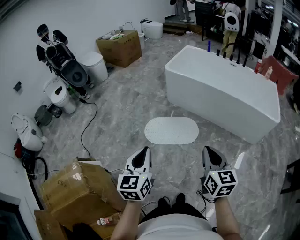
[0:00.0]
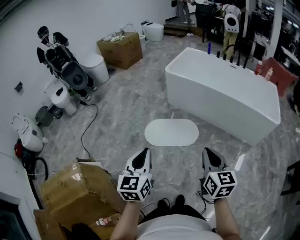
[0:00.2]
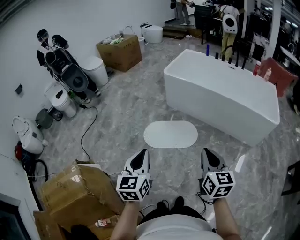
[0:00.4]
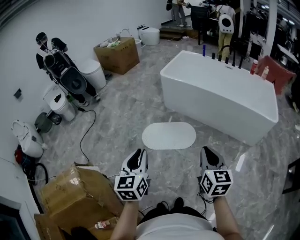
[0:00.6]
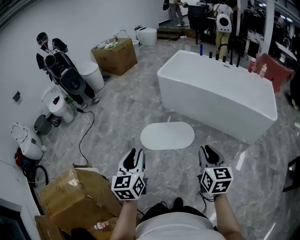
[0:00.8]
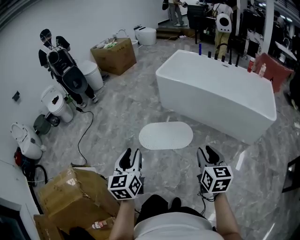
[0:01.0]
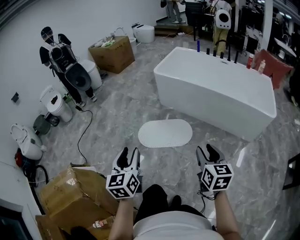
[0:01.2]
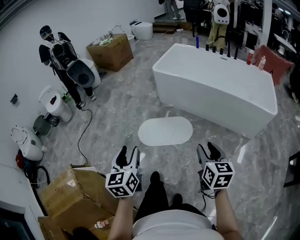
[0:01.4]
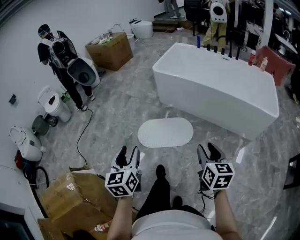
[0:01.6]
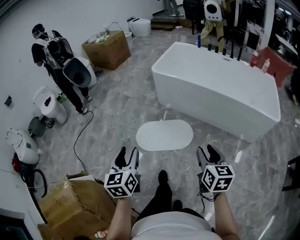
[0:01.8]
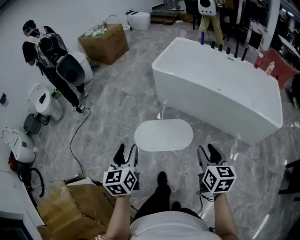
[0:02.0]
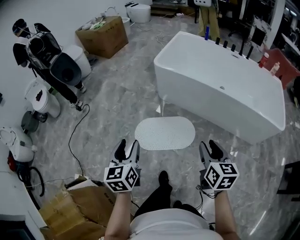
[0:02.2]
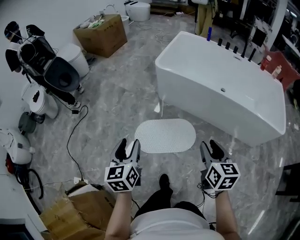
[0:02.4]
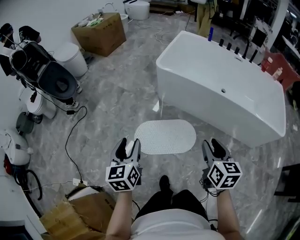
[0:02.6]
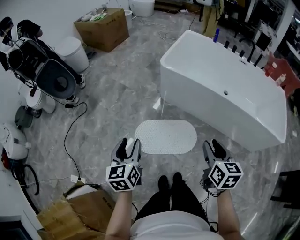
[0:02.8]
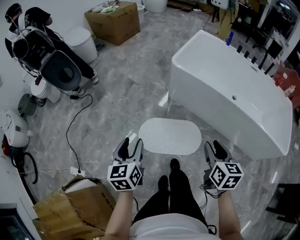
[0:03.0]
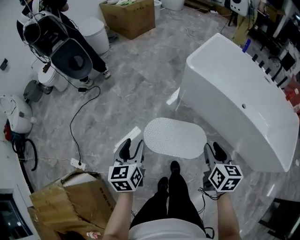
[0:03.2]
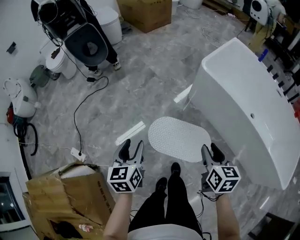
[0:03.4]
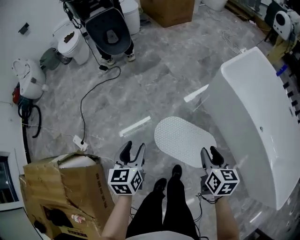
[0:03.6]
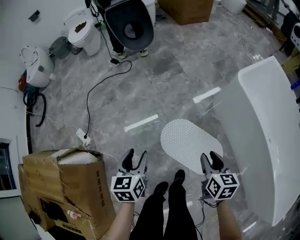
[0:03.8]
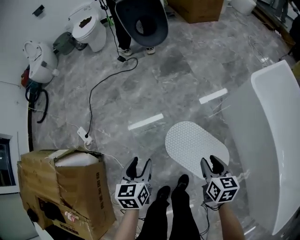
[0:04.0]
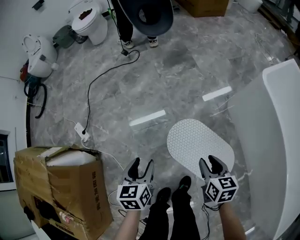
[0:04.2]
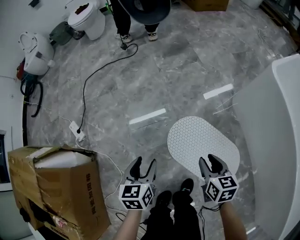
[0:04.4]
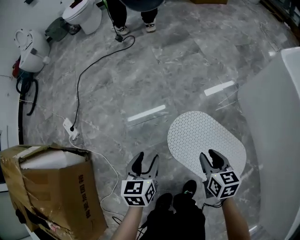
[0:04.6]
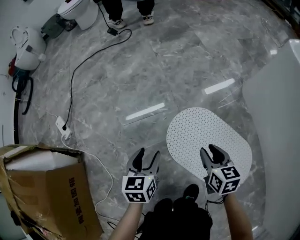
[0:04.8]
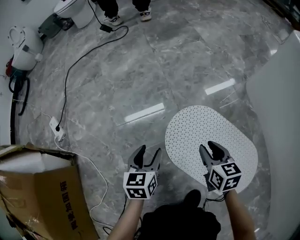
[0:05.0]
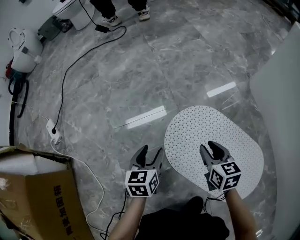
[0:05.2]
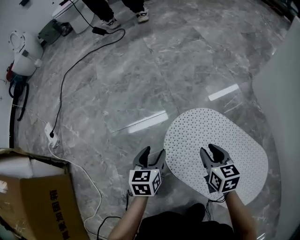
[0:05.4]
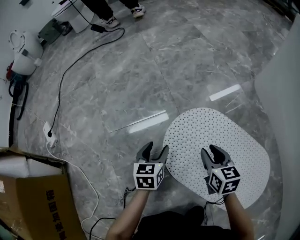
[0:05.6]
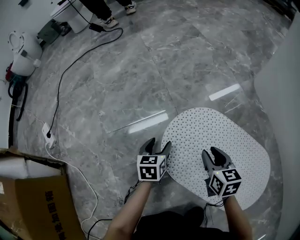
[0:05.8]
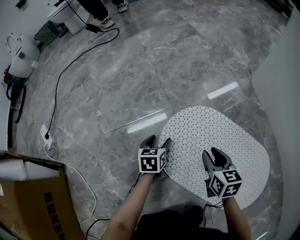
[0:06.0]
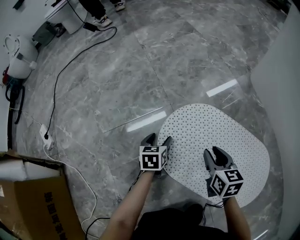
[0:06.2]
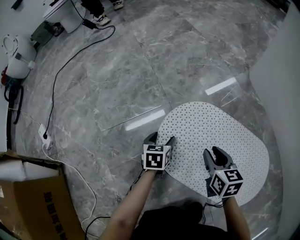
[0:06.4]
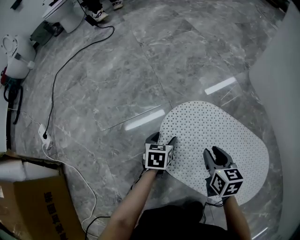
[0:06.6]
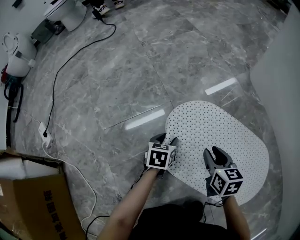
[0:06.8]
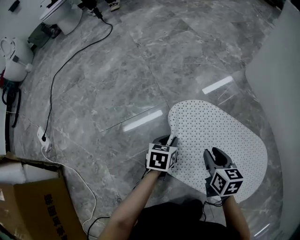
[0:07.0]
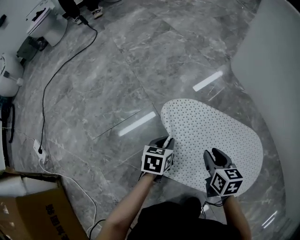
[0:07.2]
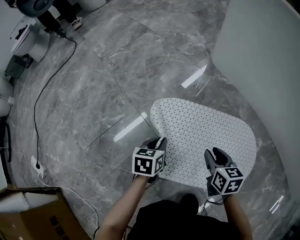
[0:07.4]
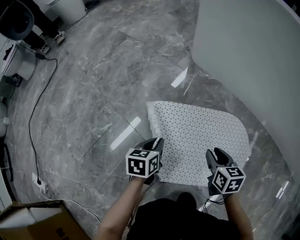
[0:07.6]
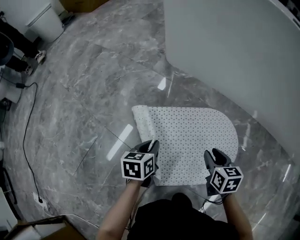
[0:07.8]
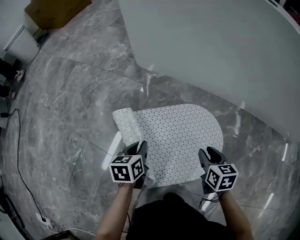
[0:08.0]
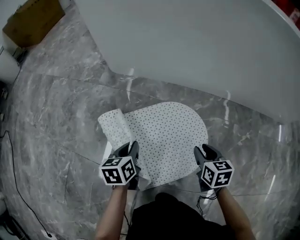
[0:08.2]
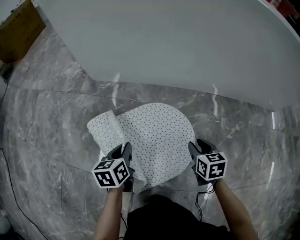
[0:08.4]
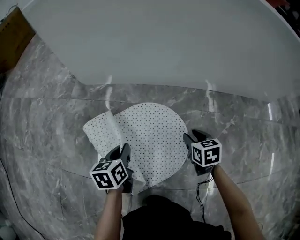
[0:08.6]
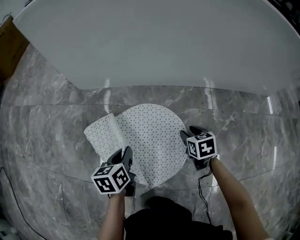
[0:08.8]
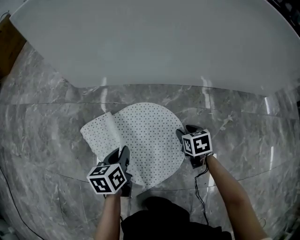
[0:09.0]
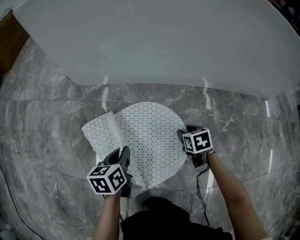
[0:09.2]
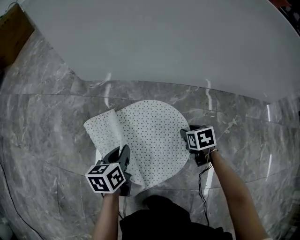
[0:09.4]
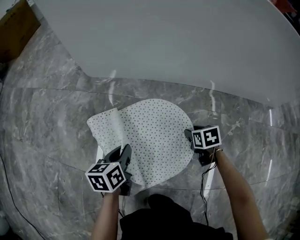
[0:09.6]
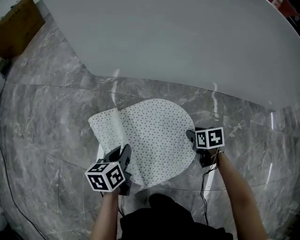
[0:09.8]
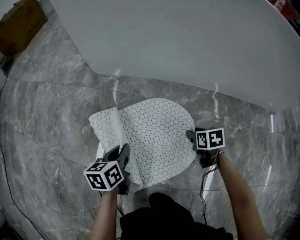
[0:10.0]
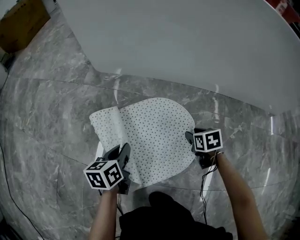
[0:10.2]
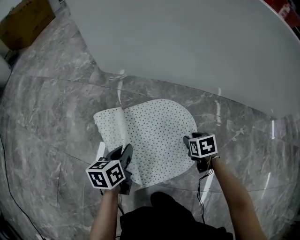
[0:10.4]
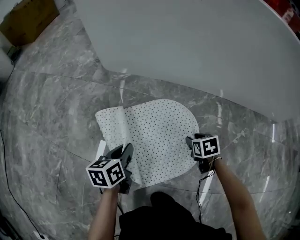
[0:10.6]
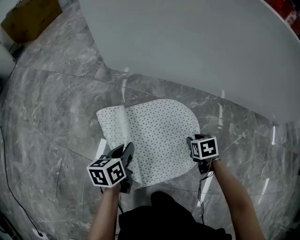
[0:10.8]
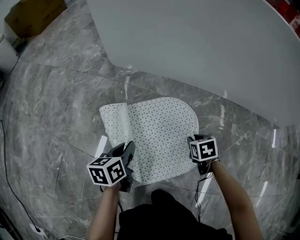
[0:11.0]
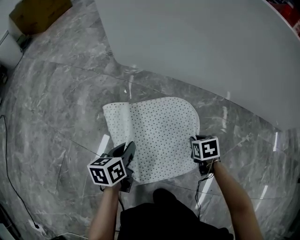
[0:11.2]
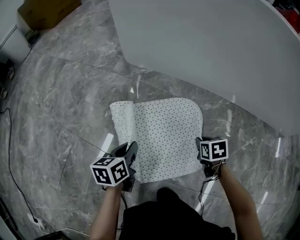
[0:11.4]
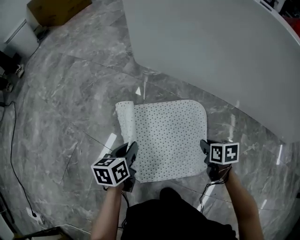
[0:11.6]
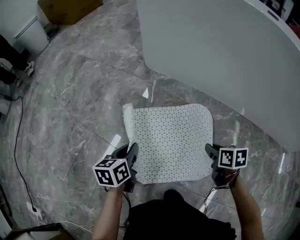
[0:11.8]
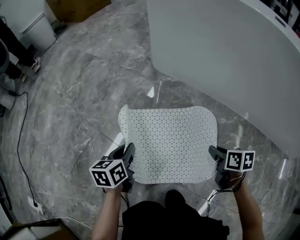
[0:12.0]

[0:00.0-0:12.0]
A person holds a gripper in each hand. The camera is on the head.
0:00.0 to 0:01.6: The right gripper goes roughly 15 cm to the right, forward and downward, and opens its fingers. The left gripper shifts approximately 5 cm forward, and opens.
0:01.6 to 0:03.0: Both grippers move forward, about 35 cm.
0:03.0 to 0:04.4: Both grippers move downward, approximately 40 cm. The left gripper rotates about 30 degrees, while the right gripper changes its angle by approximately 40 degrees.
0:04.4 to 0:06.0: The grippers both shift downward by some 40 cm.
0:06.0 to 0:07.6: The right gripper moves some 20 cm, and changes its angle by some 30 degrees. The left gripper ends up some 20 cm from where it was, rotates some 30 degrees, and closes up.
0:07.6 to 0:09.0: The left gripper shifts by some 25 cm, and swivels some 20 degrees; the right gripper ends up some 25 cm from where it was, and changes its angle by some 30 degrees.
0:09.0 to 0:10.4: The left gripper goes about 5 cm to the left. Meanwhile the right gripper changes place by approximately 5 cm.
0:10.4 to 0:12.0: The right gripper travels upward by some 15 cm, rotates about 20 degrees, and closes its fingers, while the left gripper changes place by about 15 cm.

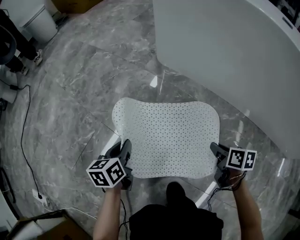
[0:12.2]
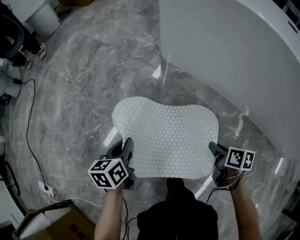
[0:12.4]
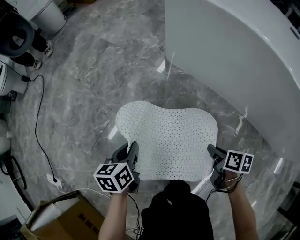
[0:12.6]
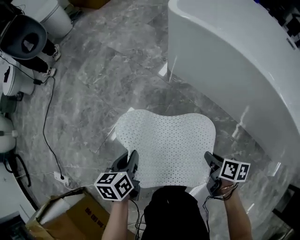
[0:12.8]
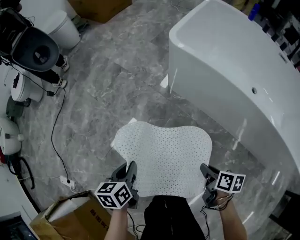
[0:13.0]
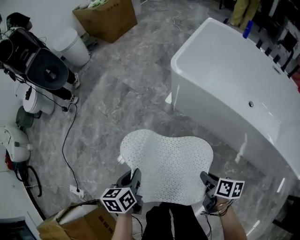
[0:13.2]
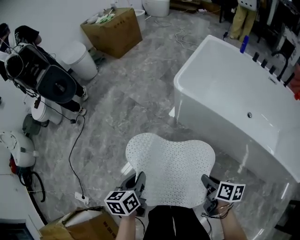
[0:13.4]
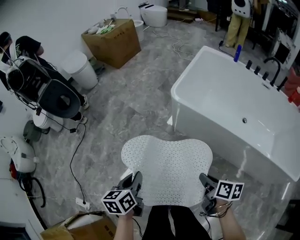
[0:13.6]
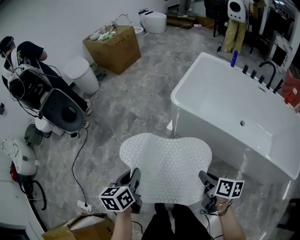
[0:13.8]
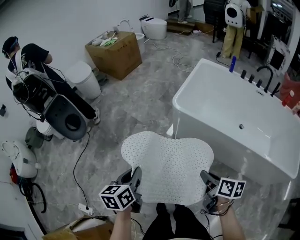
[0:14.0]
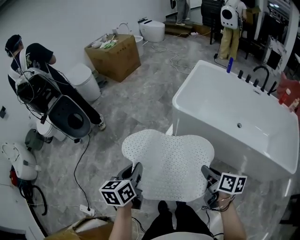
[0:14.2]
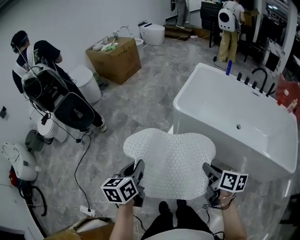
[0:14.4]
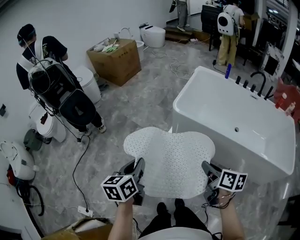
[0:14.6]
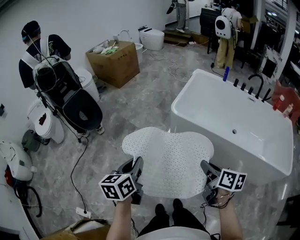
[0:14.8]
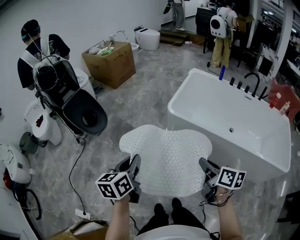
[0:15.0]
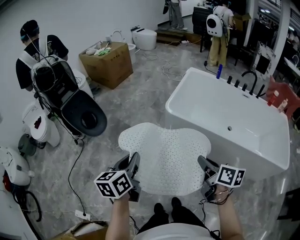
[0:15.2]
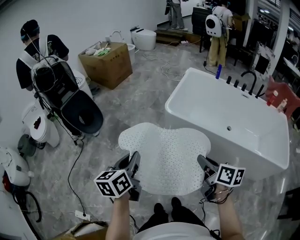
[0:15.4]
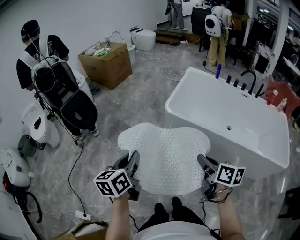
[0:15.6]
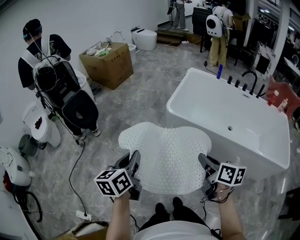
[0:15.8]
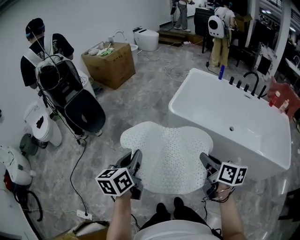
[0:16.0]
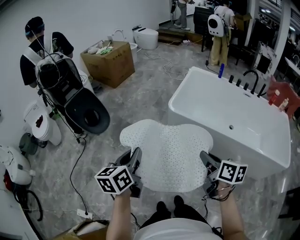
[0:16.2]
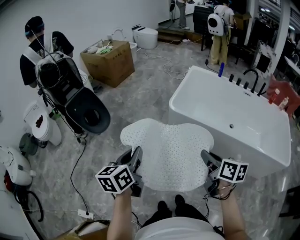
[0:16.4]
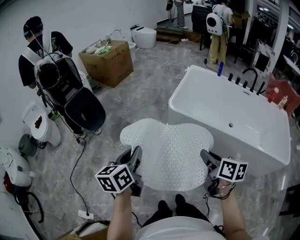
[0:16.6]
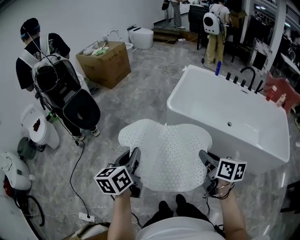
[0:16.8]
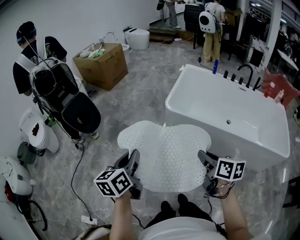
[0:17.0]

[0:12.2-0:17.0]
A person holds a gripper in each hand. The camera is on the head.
0:12.2 to 0:13.8: The two grippers go approximately 60 cm upward.
0:13.8 to 0:15.4: The grippers both shift upward by roughly 15 cm.
0:15.4 to 0:17.0: The grippers make only small movements.

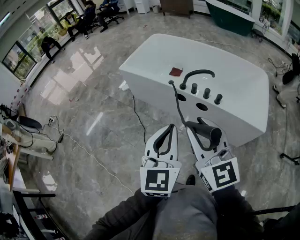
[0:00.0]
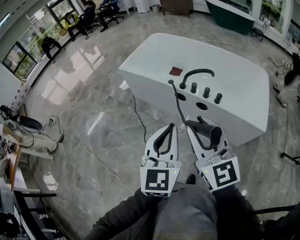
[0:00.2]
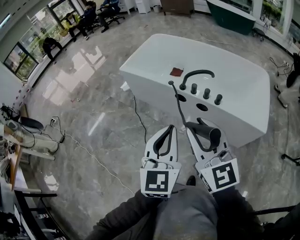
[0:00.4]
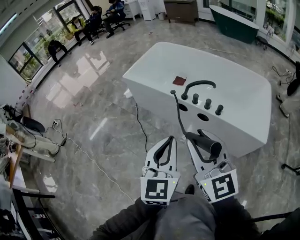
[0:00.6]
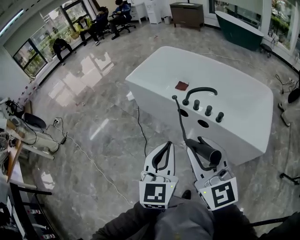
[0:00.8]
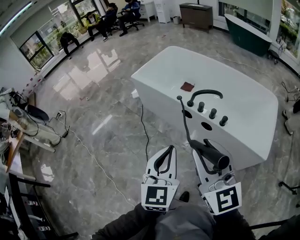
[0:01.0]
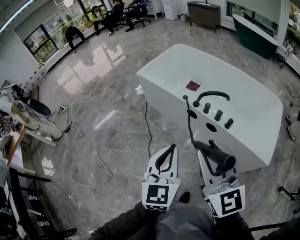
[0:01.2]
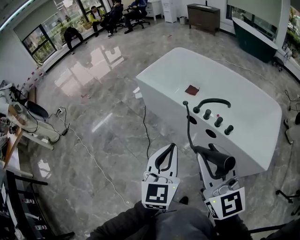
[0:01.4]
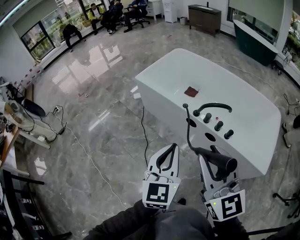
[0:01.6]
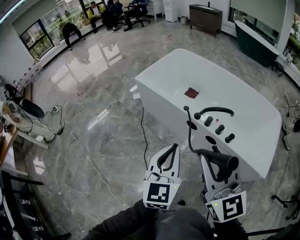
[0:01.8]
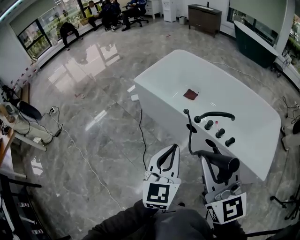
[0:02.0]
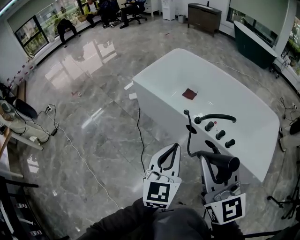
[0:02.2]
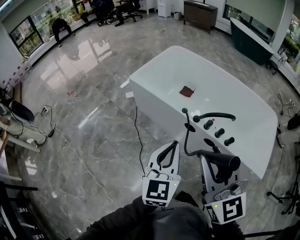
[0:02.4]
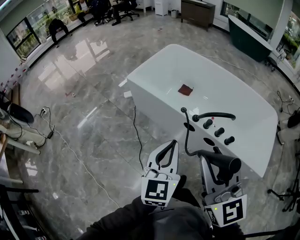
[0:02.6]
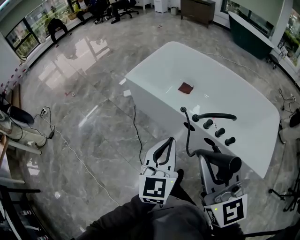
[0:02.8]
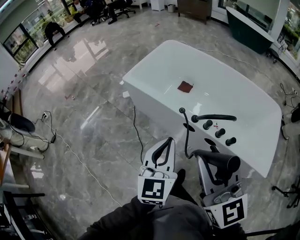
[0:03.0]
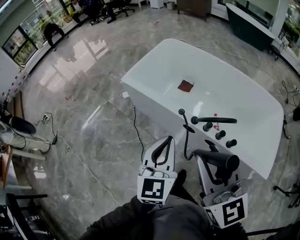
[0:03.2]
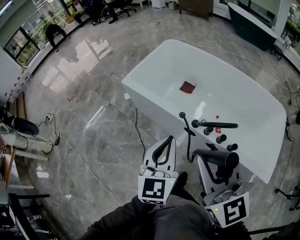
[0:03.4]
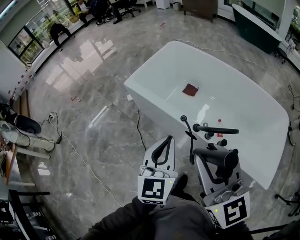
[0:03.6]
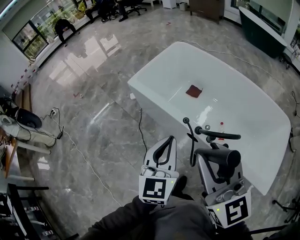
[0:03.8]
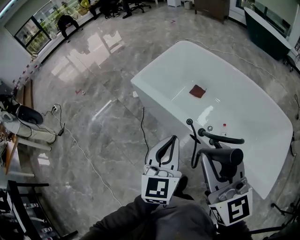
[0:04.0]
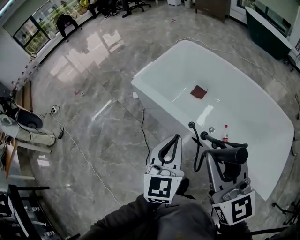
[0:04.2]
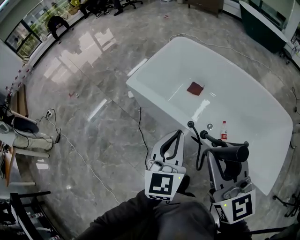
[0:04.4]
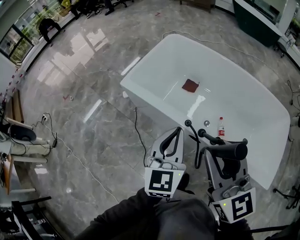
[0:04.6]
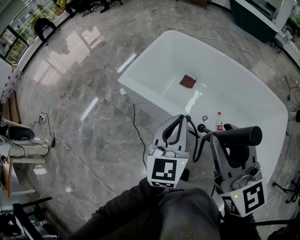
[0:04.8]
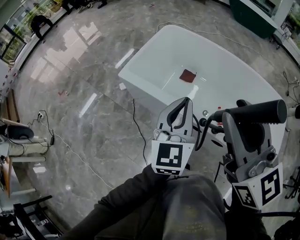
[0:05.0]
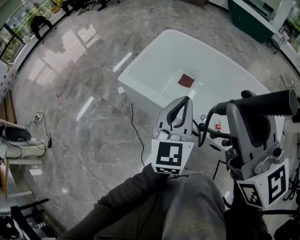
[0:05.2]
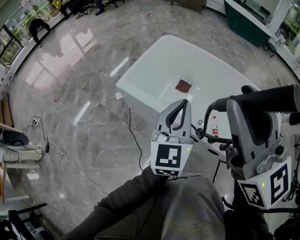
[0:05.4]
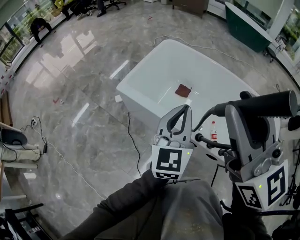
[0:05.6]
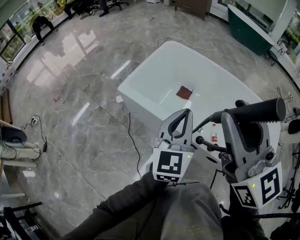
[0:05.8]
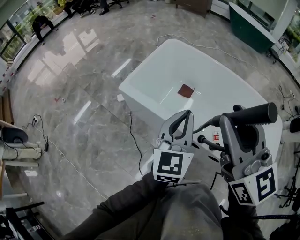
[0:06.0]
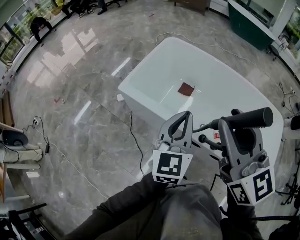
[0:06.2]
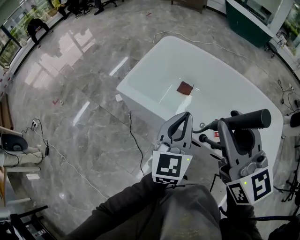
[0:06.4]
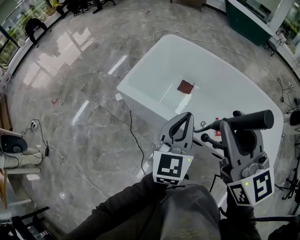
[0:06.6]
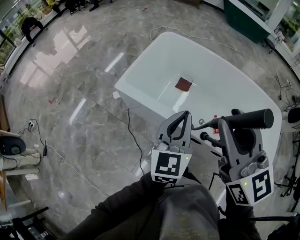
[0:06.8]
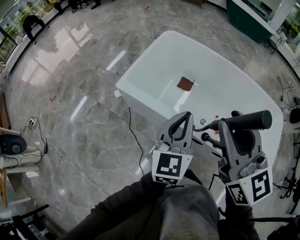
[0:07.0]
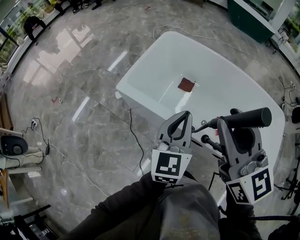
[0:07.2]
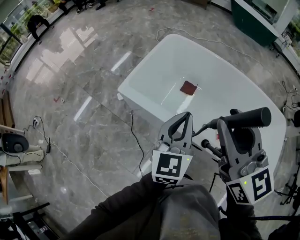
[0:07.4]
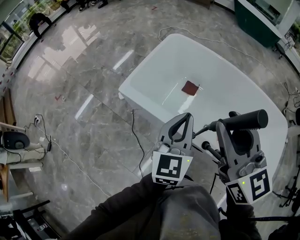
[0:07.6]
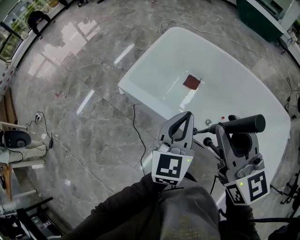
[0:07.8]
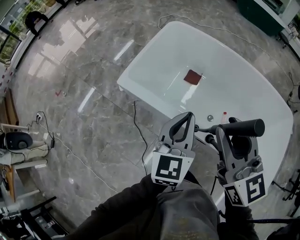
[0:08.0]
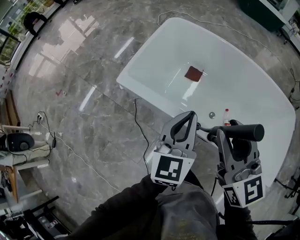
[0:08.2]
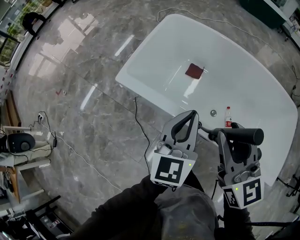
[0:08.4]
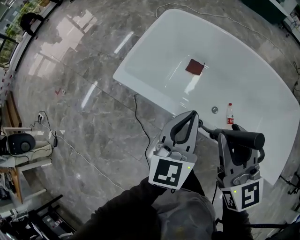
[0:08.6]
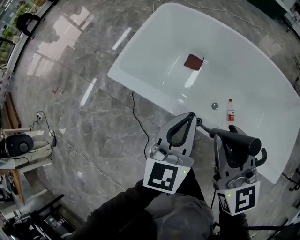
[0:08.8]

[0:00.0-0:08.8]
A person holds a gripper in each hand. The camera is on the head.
0:00.0 to 0:01.4: The left gripper travels forward by roughly 5 cm.
0:01.4 to 0:03.0: The grippers both shift forward by some 15 cm.
0:03.0 to 0:04.4: Both grippers travel together forward, approximately 15 cm.
0:04.4 to 0:05.8: The right gripper moves upward, forward and to the left, about 15 cm. The left gripper heads forward, covering about 10 cm.
0:05.8 to 0:07.4: The left gripper shifts some 5 cm forward. The right gripper moves forward and downward, about 10 cm.
0:07.4 to 0:08.8: The left gripper travels downward by some 10 cm, while the right gripper shifts some 15 cm downward.
